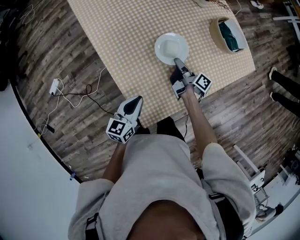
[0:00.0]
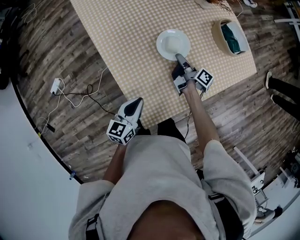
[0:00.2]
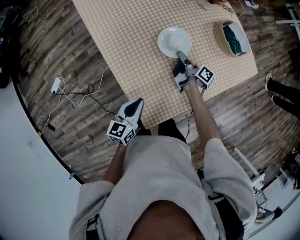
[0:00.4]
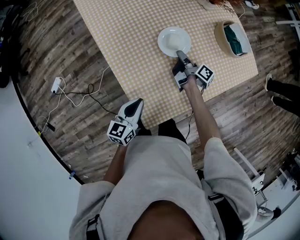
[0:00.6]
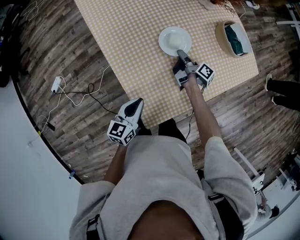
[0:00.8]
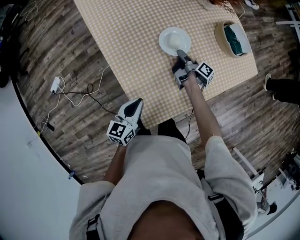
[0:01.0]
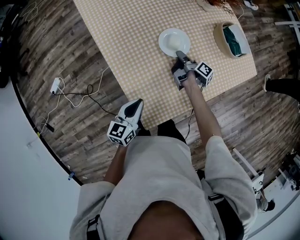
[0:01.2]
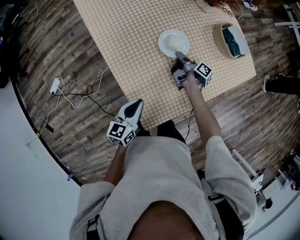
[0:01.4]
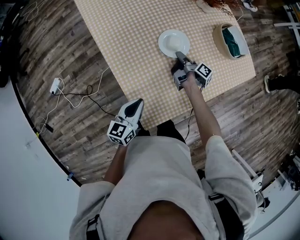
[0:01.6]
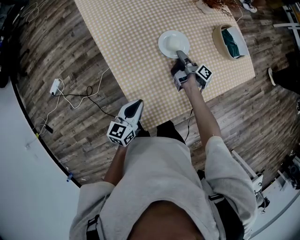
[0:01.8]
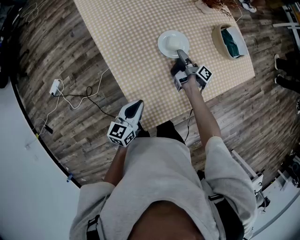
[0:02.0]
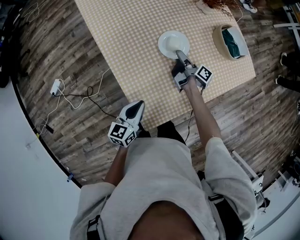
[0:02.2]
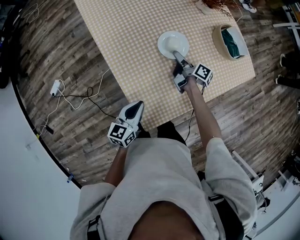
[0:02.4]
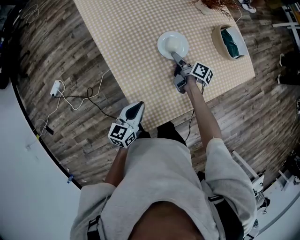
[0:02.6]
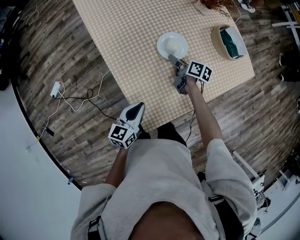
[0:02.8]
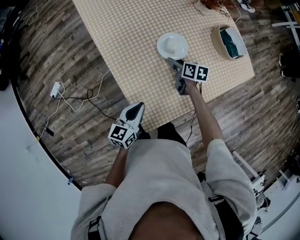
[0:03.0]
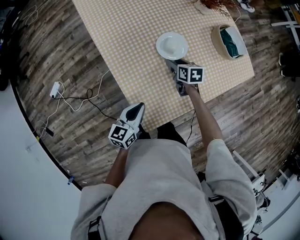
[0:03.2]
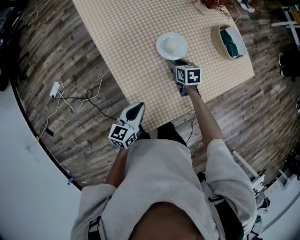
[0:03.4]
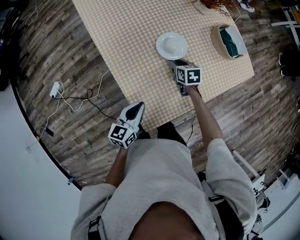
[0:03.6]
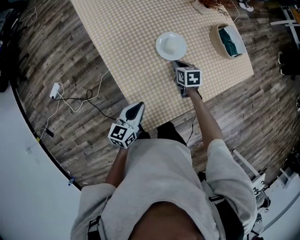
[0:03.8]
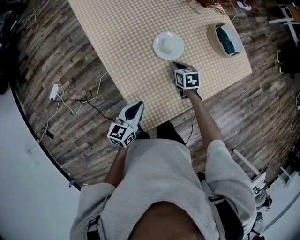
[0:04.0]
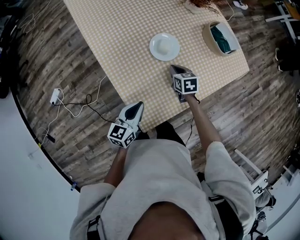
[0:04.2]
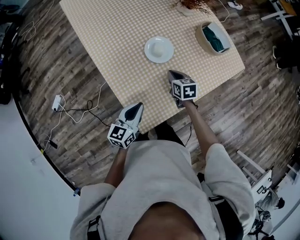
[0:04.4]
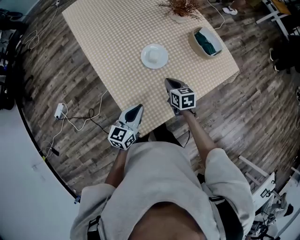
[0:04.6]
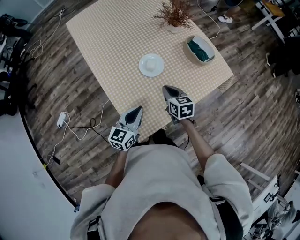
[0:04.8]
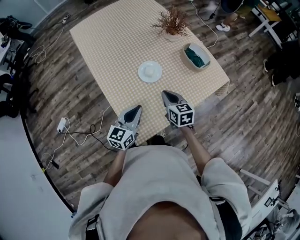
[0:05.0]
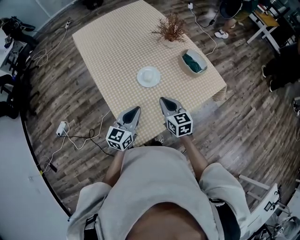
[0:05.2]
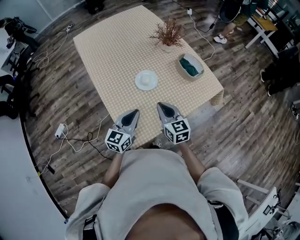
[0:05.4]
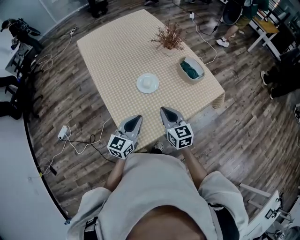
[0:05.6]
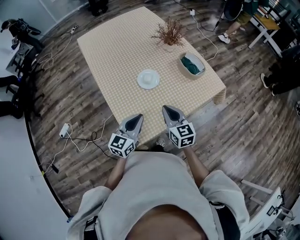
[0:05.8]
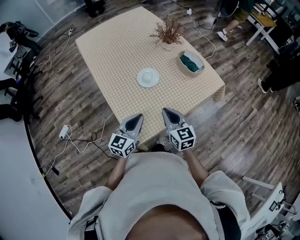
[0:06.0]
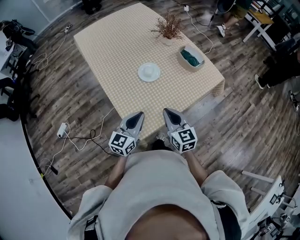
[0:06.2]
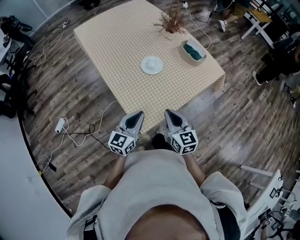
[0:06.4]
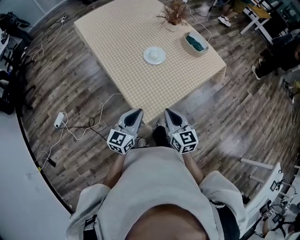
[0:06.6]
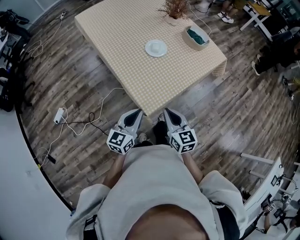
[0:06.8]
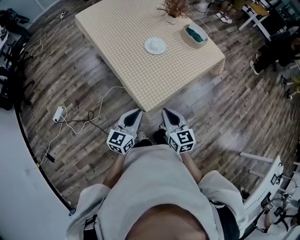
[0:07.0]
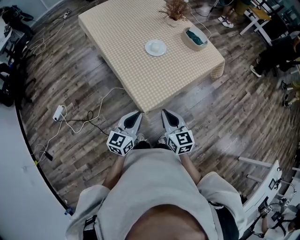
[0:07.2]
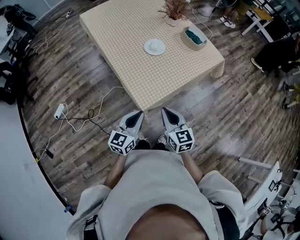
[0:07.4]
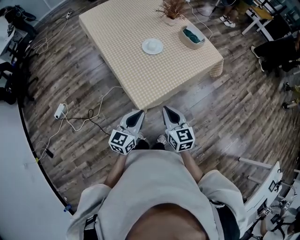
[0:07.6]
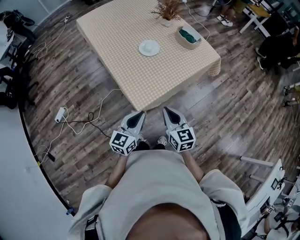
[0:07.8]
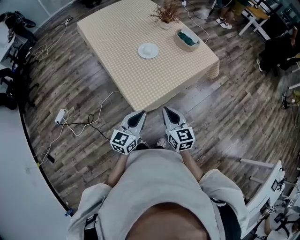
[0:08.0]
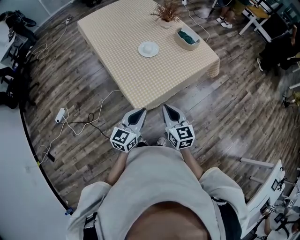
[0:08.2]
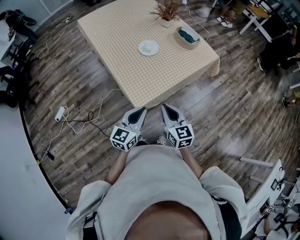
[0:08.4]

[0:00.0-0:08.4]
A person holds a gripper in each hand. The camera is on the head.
0:04.2 to 0:05.6: The left gripper travels upward by roughly 15 cm, and changes its angle by some 20 degrees.
0:05.6 to 0:07.0: The left gripper ends up some 25 cm from where it was.
0:07.0 to 0:08.4: The left gripper moves roughly 10 cm.

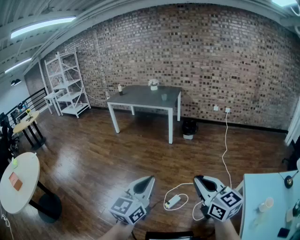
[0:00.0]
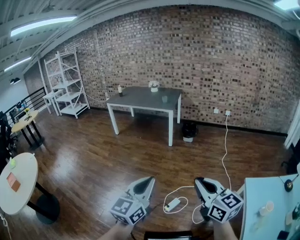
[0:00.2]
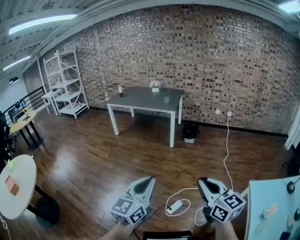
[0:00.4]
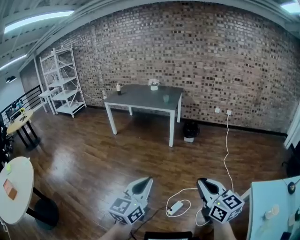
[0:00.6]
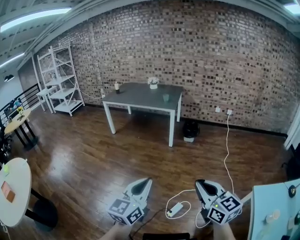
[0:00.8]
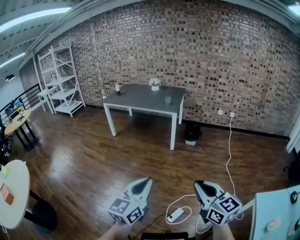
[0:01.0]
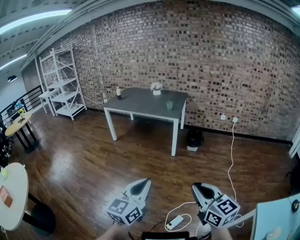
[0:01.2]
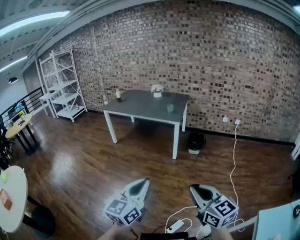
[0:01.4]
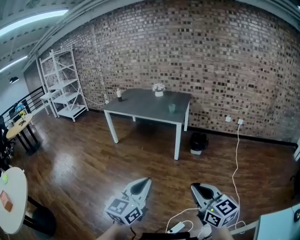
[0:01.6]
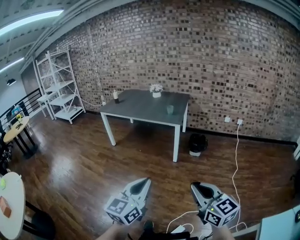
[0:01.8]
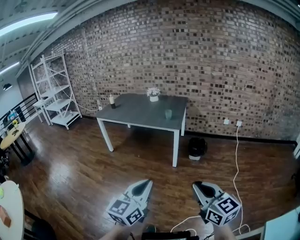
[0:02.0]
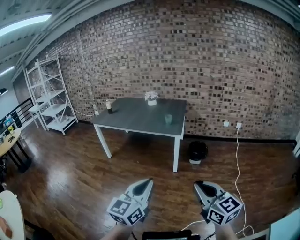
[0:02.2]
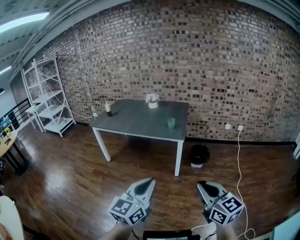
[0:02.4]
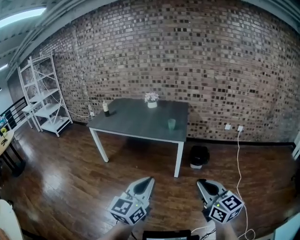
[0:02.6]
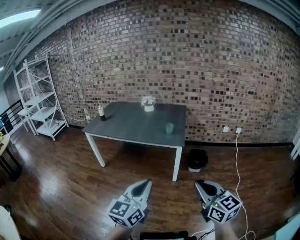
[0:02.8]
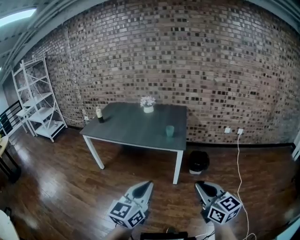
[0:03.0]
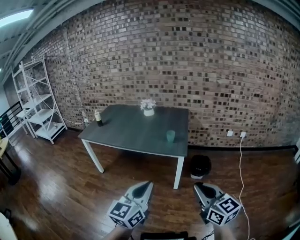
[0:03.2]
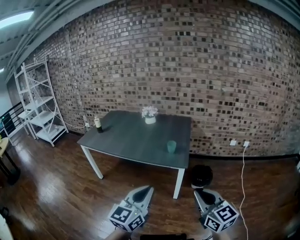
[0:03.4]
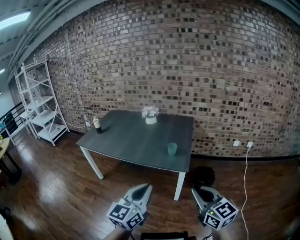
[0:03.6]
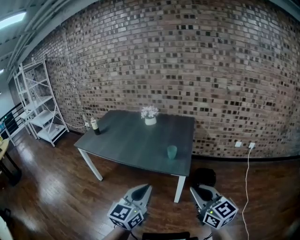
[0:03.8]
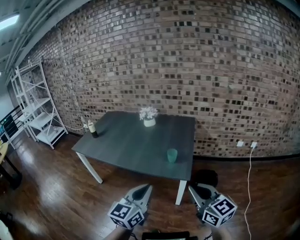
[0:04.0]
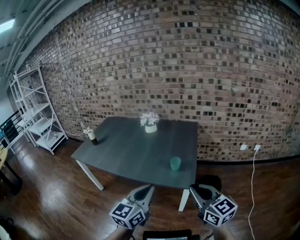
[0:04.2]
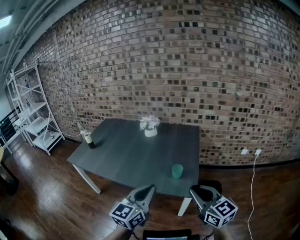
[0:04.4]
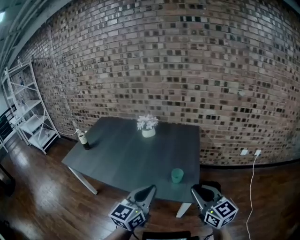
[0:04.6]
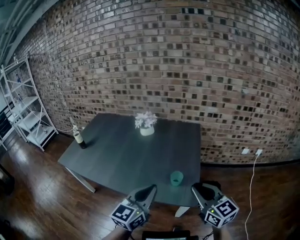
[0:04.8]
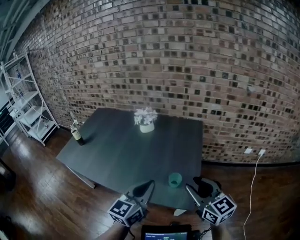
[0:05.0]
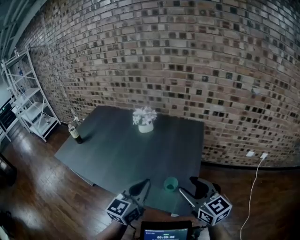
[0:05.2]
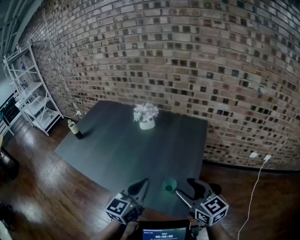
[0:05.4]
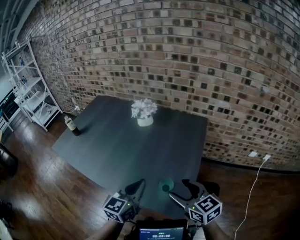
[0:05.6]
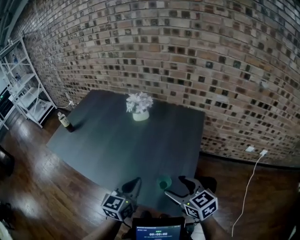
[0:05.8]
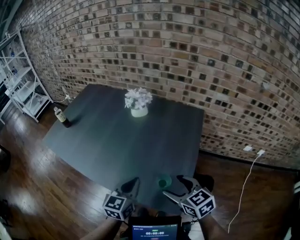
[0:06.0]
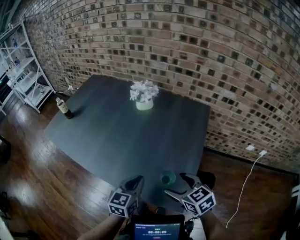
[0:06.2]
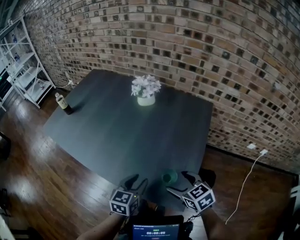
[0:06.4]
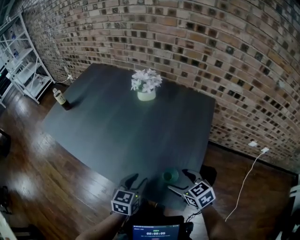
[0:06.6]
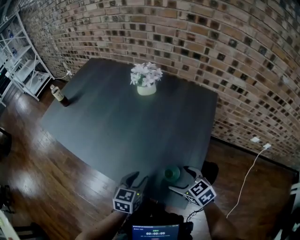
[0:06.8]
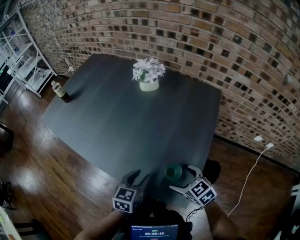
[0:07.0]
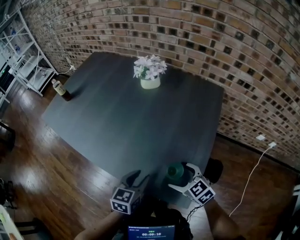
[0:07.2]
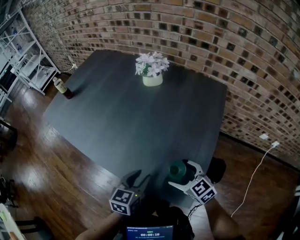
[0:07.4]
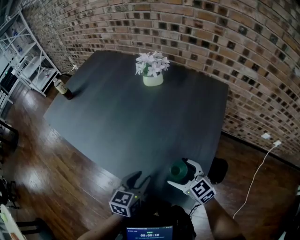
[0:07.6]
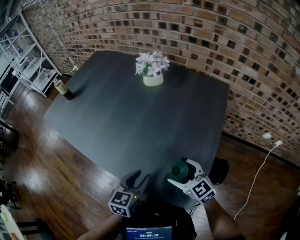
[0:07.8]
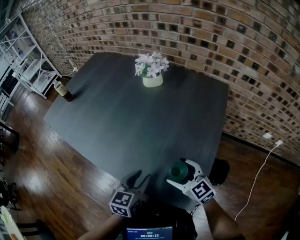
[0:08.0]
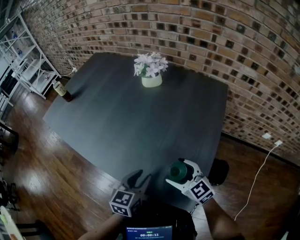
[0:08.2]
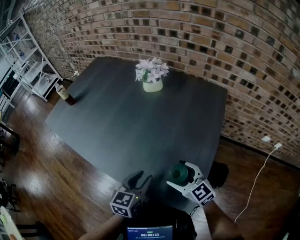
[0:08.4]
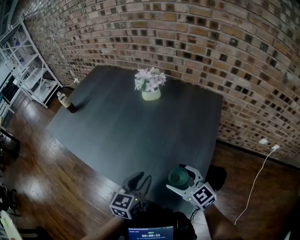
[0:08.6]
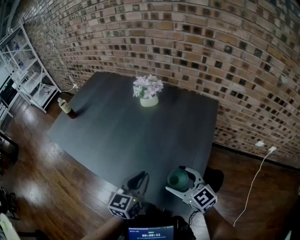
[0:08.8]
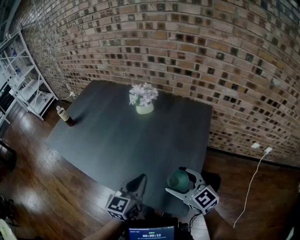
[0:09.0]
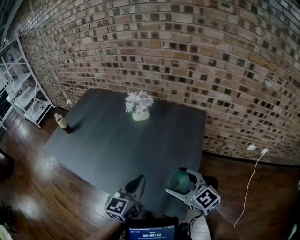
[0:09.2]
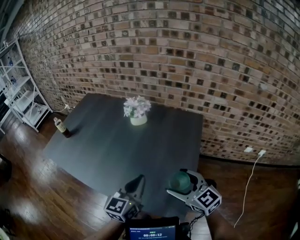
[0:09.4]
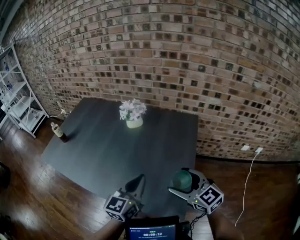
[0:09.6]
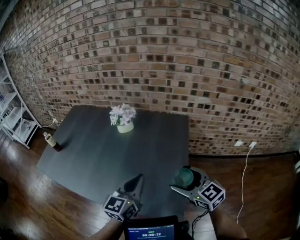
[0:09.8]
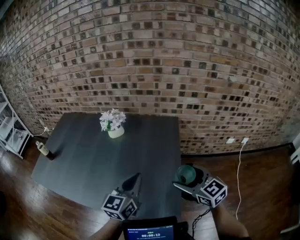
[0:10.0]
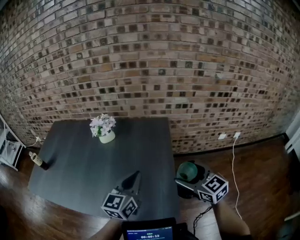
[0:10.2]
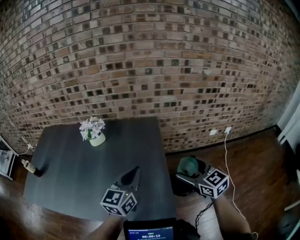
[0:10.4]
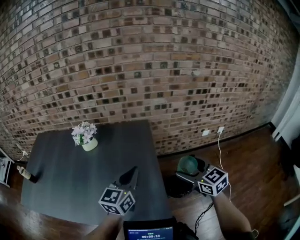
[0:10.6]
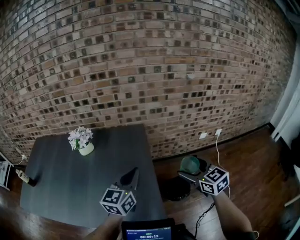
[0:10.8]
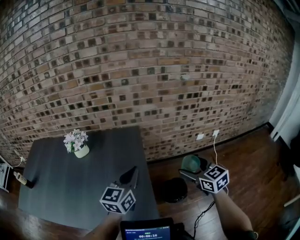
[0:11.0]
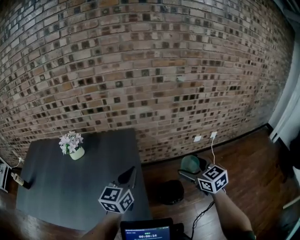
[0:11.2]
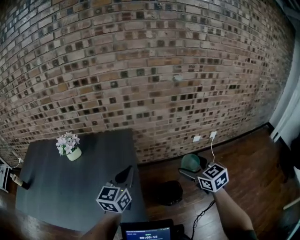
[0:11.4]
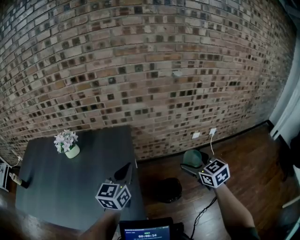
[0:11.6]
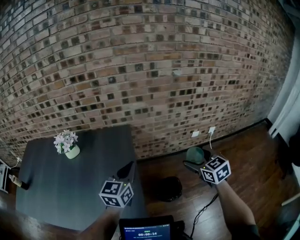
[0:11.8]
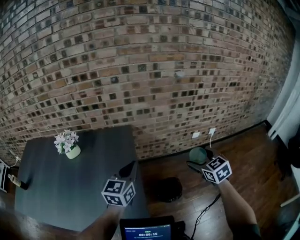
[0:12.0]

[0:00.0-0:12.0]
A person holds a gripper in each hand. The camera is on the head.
0:00.0 to 0:01.6: The grippers both shift forward by about 35 cm.
0:01.6 to 0:03.0: The two grippers go about 40 cm forward.
0:03.0 to 0:04.4: The two grippers travel together, forward, approximately 40 cm.
0:04.4 to 0:06.0: The grippers both shift forward and downward by about 30 cm. The left gripper turns by roughly 20 degrees, while the right gripper turns by approximately 30 degrees, and opens up.
0:06.0 to 0:07.6: The two grippers go some 15 cm downward. The left gripper opens up.
0:07.6 to 0:09.0: Both grippers move upward, about 15 cm. The left gripper closes its fingers.
0:09.0 to 0:10.4: The left gripper ends up about 15 cm from where it was, and rotates some 30 degrees. The right gripper ends up about 20 cm from where it was, and changes its angle by approximately 30 degrees.
0:10.4 to 0:12.0: The right gripper travels to the right by roughly 25 cm, and rotates roughly 20 degrees; the left gripper travels to the right and forward by about 20 cm.

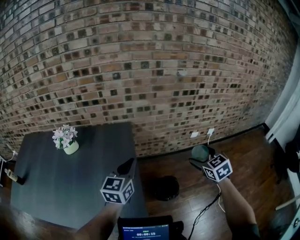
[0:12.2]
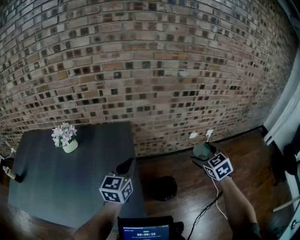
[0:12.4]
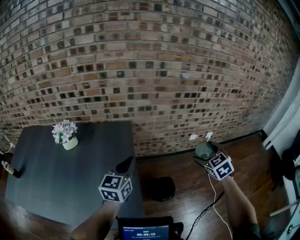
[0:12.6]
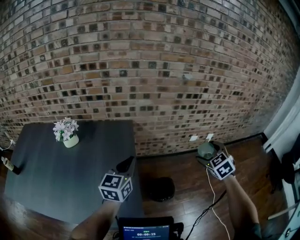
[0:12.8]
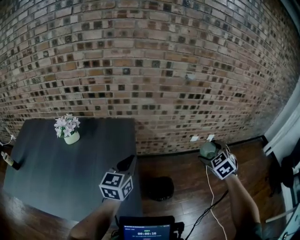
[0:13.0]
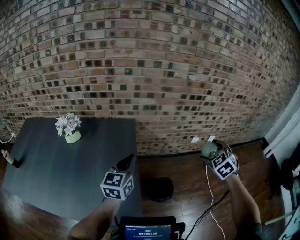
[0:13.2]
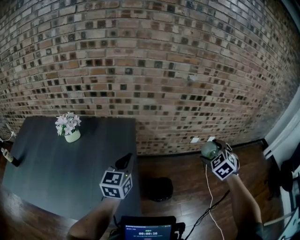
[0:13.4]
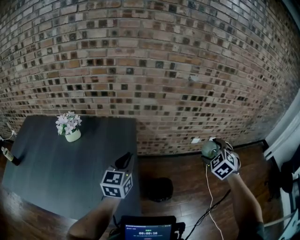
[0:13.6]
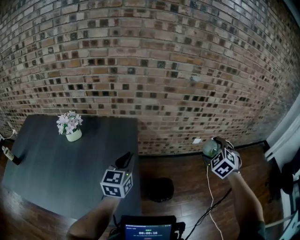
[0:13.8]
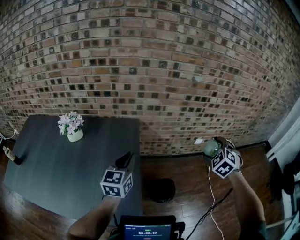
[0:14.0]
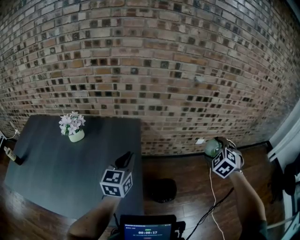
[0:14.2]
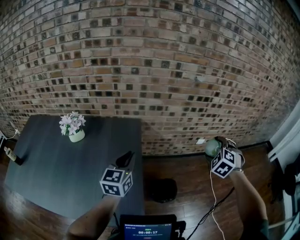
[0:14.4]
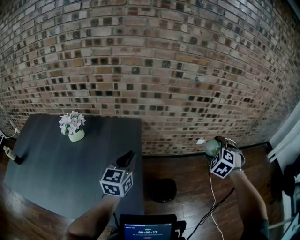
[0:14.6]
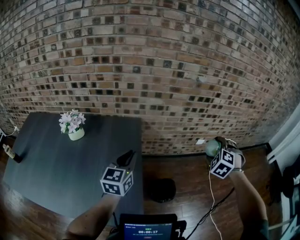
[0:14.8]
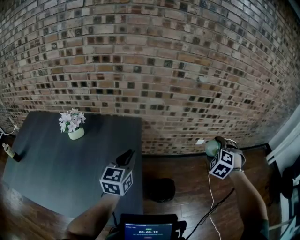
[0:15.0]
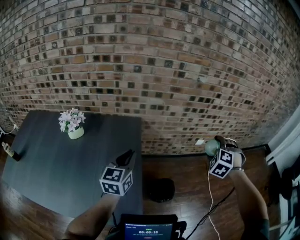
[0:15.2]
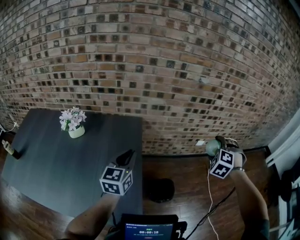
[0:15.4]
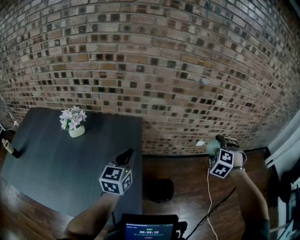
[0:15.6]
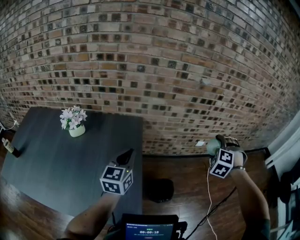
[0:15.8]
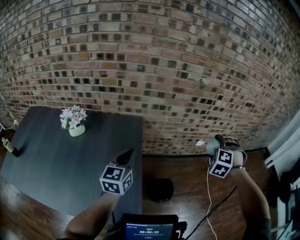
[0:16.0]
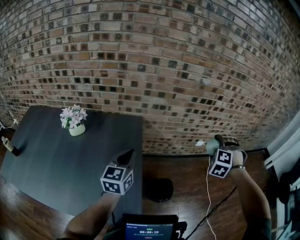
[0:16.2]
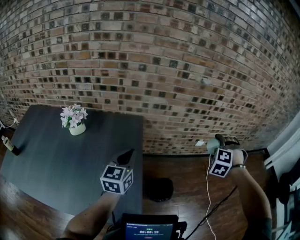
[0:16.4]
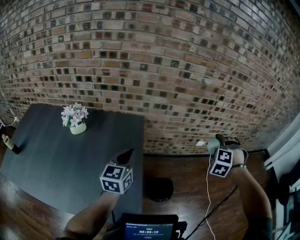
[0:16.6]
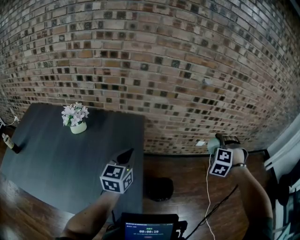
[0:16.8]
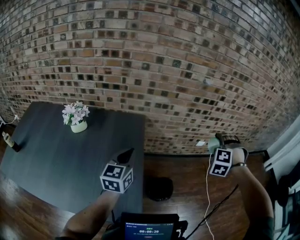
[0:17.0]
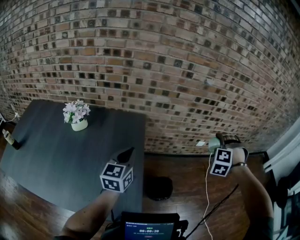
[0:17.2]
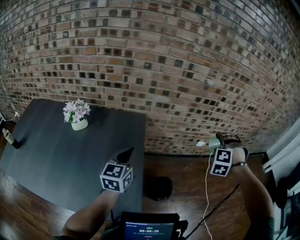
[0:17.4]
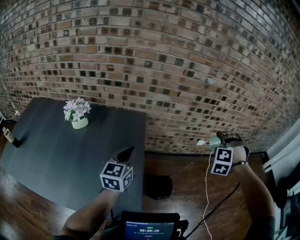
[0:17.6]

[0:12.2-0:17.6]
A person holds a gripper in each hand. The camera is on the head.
0:12.2 to 0:13.6: The right gripper changes place by approximately 5 cm, and rotates roughly 40 degrees.
0:13.6 to 0:15.0: The right gripper changes its angle by roughly 20 degrees.
0:15.0 to 0:16.2: There are only small adjustments of the grippers.
0:16.2 to 0:17.6: The grippers move only a little.
